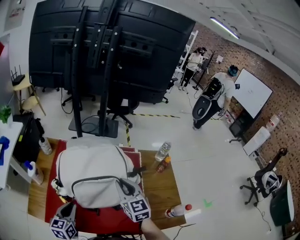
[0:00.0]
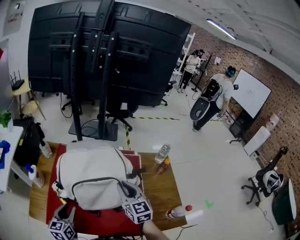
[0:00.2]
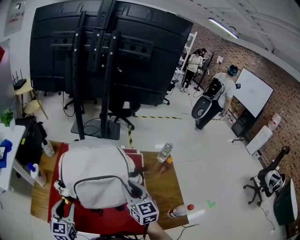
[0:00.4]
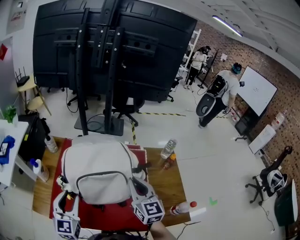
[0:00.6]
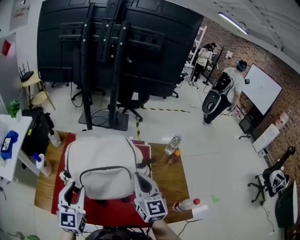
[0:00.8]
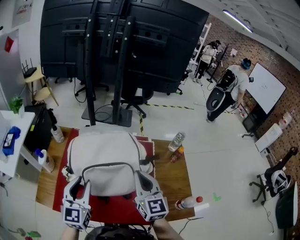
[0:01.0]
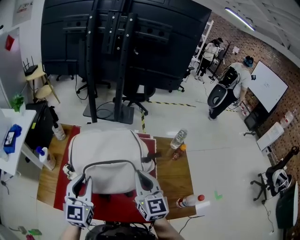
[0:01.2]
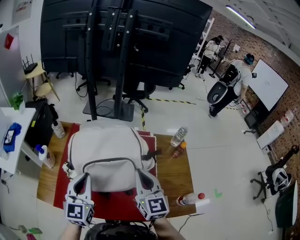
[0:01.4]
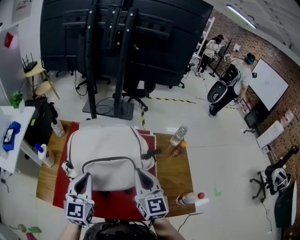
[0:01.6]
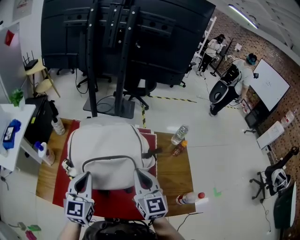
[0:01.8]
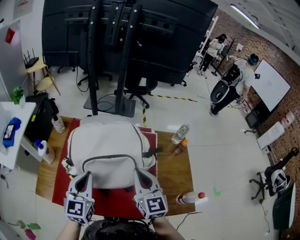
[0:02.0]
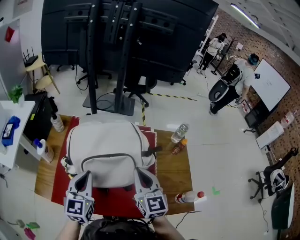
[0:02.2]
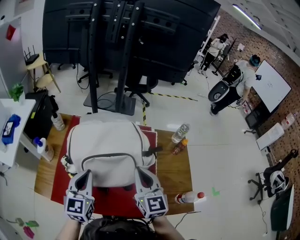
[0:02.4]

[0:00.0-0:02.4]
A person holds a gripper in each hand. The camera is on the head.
0:00.0 to 0:01.2: The right gripper goes approximately 5 cm upward; the left gripper is displaced upward by about 15 cm, and rotates approximately 20 degrees.
0:01.2 to 0:02.4: The left gripper closes up.

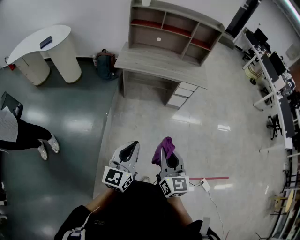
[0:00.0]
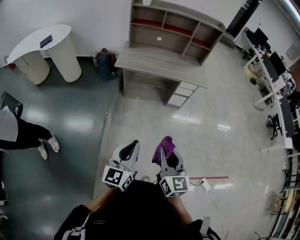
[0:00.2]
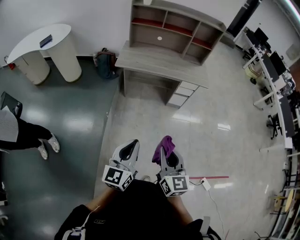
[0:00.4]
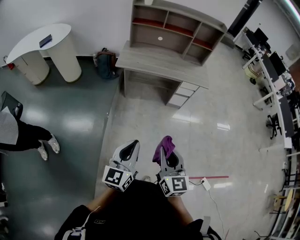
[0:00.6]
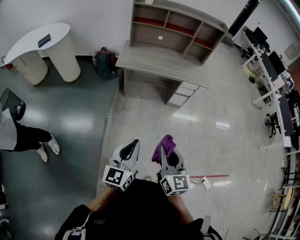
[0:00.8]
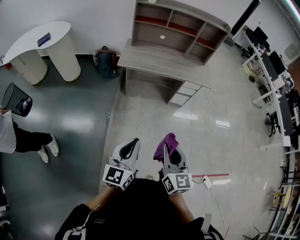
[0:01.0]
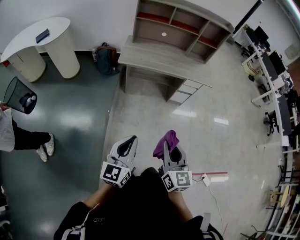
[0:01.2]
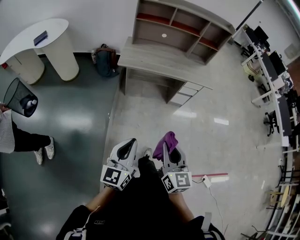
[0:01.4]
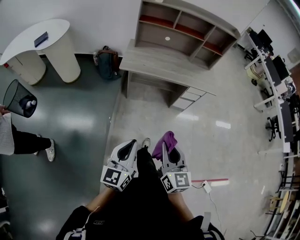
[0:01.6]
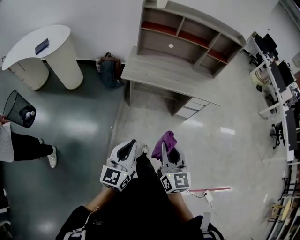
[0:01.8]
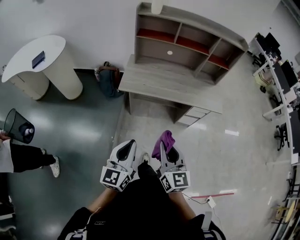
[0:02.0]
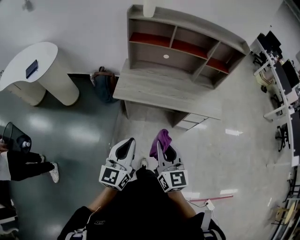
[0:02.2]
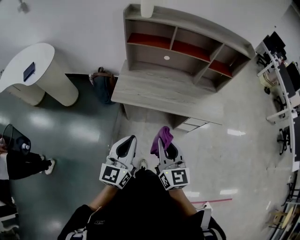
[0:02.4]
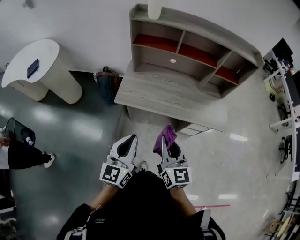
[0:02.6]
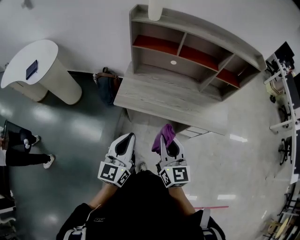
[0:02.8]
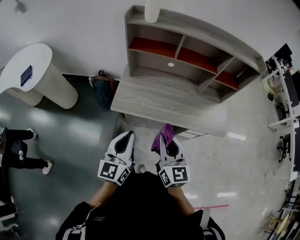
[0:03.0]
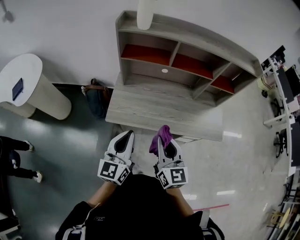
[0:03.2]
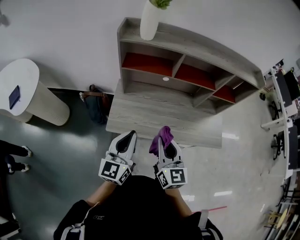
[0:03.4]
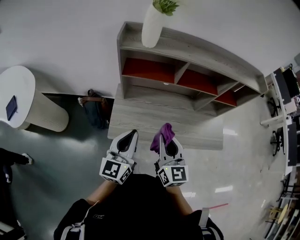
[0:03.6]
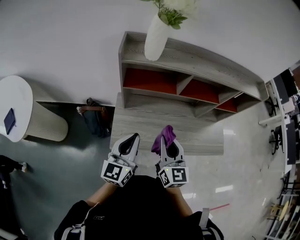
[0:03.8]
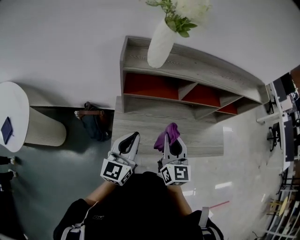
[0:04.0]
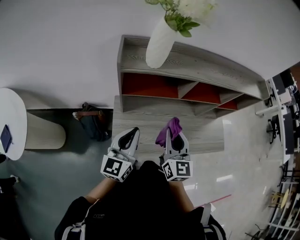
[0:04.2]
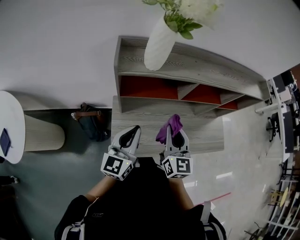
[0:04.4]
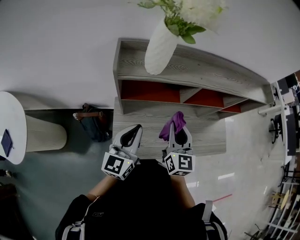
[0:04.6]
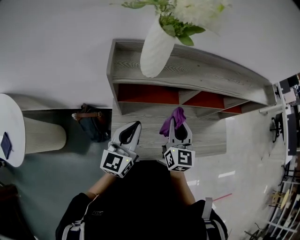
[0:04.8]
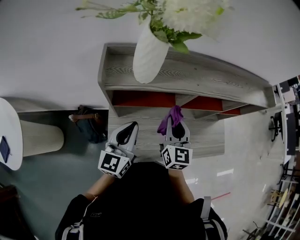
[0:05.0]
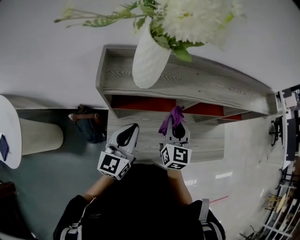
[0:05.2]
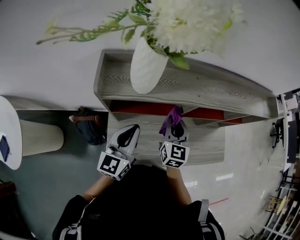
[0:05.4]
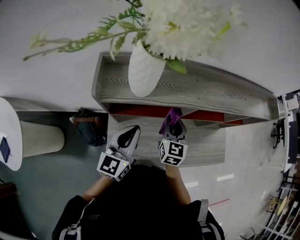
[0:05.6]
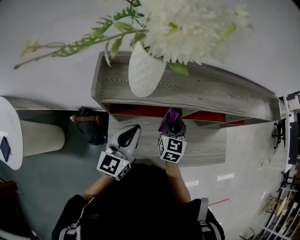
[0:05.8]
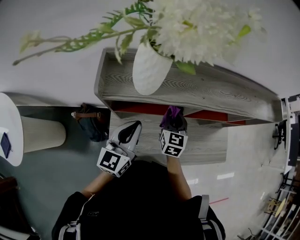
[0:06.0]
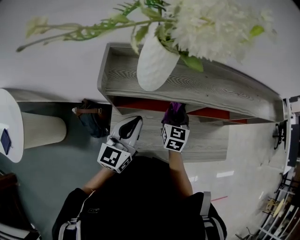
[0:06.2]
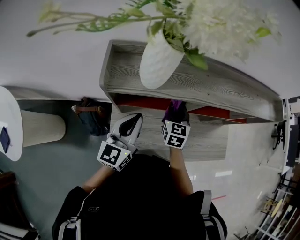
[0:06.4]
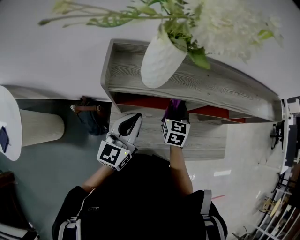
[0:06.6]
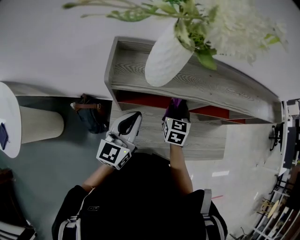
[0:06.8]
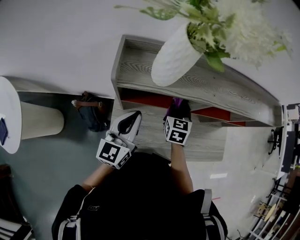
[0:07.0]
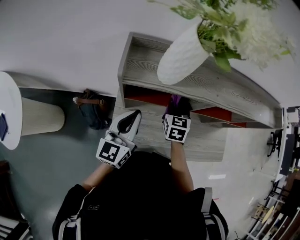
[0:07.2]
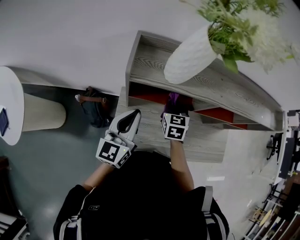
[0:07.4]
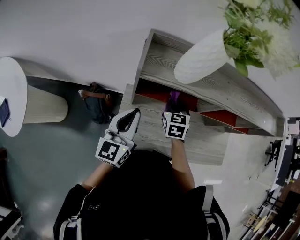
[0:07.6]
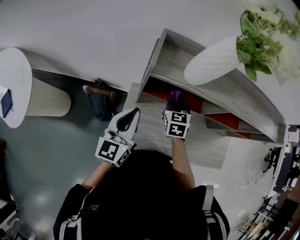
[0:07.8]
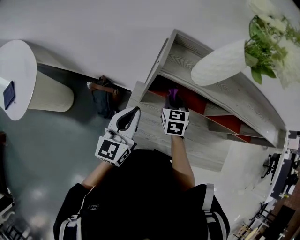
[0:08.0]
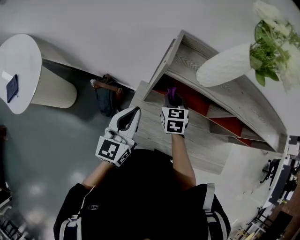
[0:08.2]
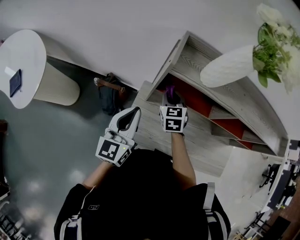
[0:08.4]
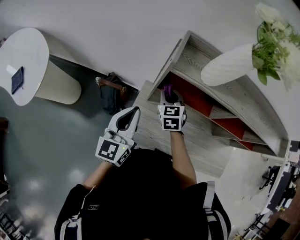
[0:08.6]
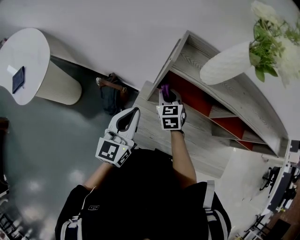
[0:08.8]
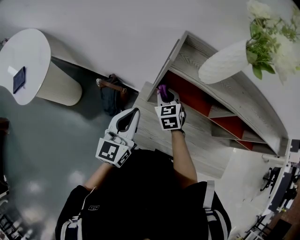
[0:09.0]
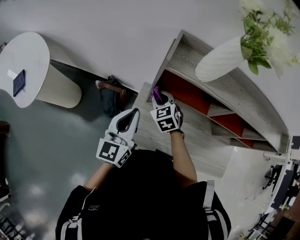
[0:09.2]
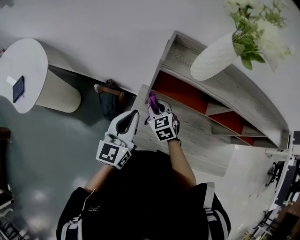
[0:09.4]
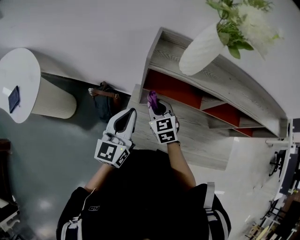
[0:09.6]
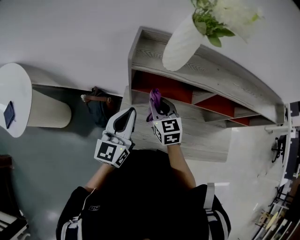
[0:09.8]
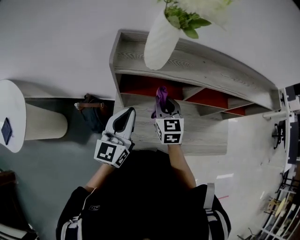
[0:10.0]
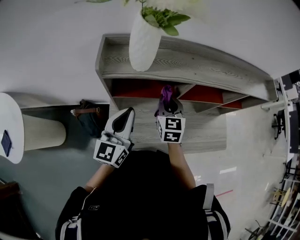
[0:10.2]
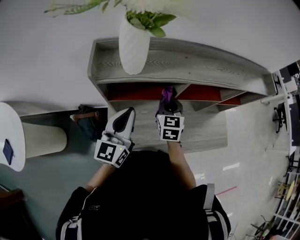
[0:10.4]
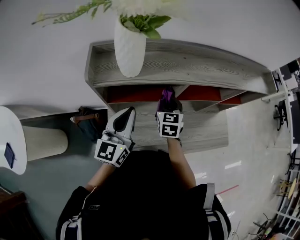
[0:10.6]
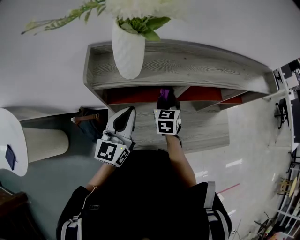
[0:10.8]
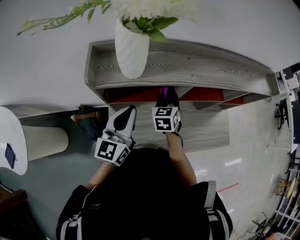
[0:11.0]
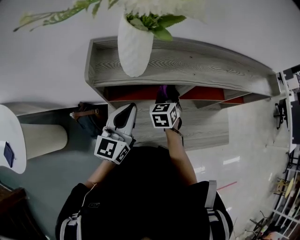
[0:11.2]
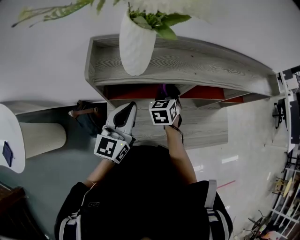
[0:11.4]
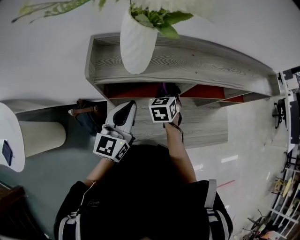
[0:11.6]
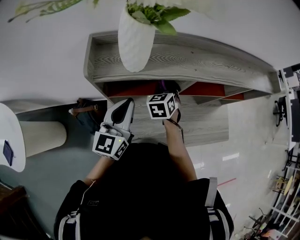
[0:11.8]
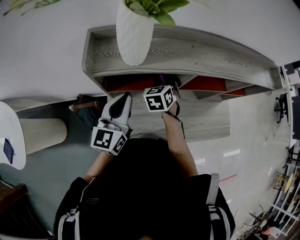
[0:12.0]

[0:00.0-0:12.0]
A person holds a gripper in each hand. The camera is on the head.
0:00.0 to 0:01.6: The left gripper heads to the left and forward, covering approximately 15 cm. Meanwhile the right gripper is displaced forward and to the left by approximately 15 cm.
0:01.6 to 0:03.0: Both grippers are carried forward, approximately 40 cm.
0:03.0 to 0:04.4: Both grippers travel together forward, roughly 35 cm. The right gripper changes its angle by approximately 20 degrees.
0:04.4 to 0:06.0: The right gripper is displaced forward and downward by roughly 20 cm, while the left gripper travels forward by about 10 cm.
0:06.0 to 0:07.6: Both grippers move to the left, roughly 10 cm.
0:07.6 to 0:09.0: The right gripper shifts roughly 15 cm to the left, and changes its angle by approximately 30 degrees. Meanwhile the left gripper is displaced to the left and backward by roughly 10 cm.
0:09.0 to 0:10.4: The left gripper shifts by about 15 cm, and rotates some 20 degrees, while the right gripper moves about 25 cm, and rotates about 40 degrees.
0:10.4 to 0:12.0: The right gripper travels forward by some 5 cm, and changes its angle by about 20 degrees.

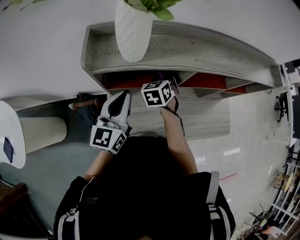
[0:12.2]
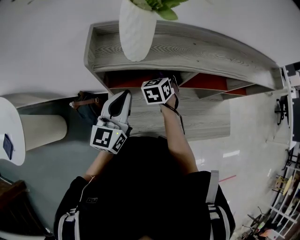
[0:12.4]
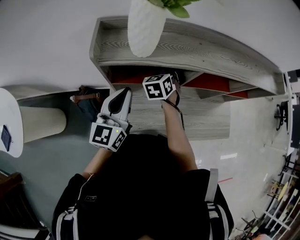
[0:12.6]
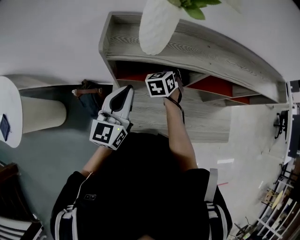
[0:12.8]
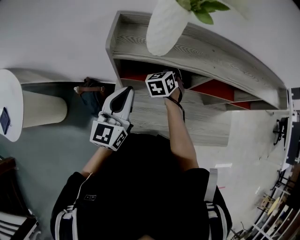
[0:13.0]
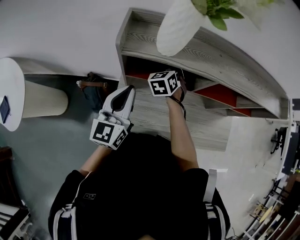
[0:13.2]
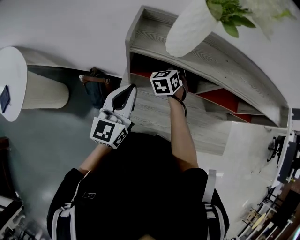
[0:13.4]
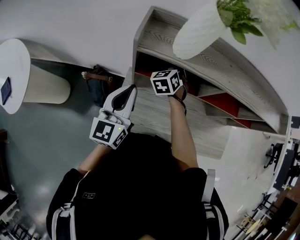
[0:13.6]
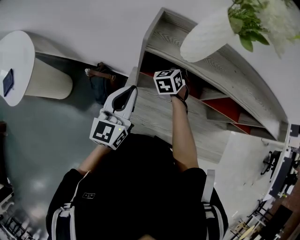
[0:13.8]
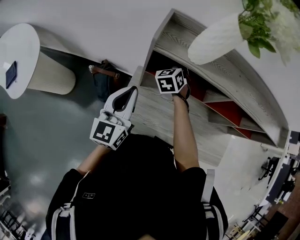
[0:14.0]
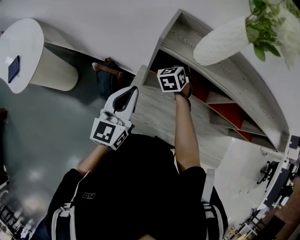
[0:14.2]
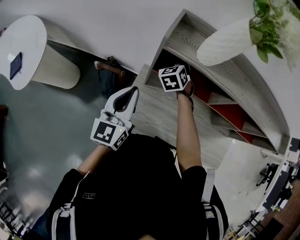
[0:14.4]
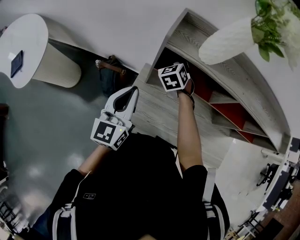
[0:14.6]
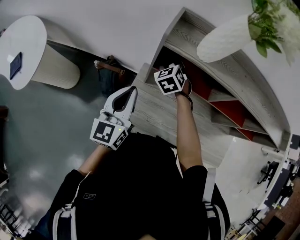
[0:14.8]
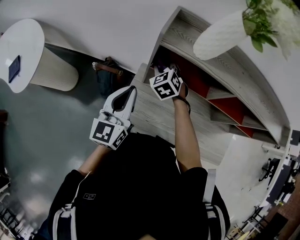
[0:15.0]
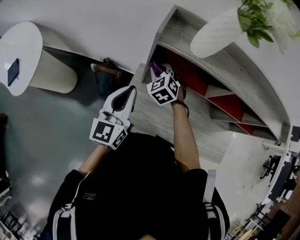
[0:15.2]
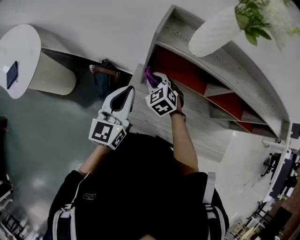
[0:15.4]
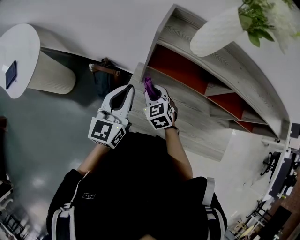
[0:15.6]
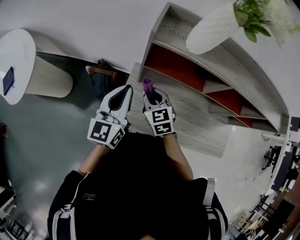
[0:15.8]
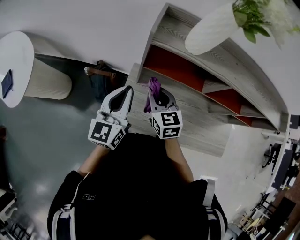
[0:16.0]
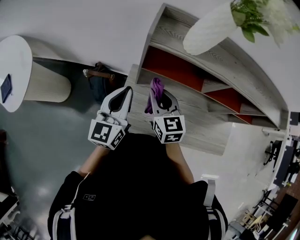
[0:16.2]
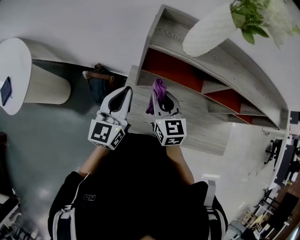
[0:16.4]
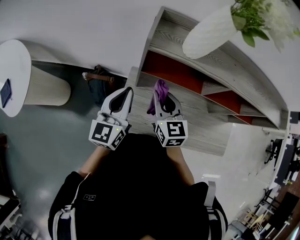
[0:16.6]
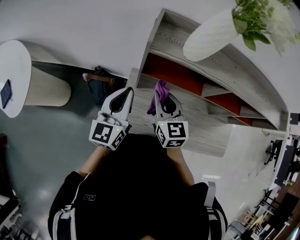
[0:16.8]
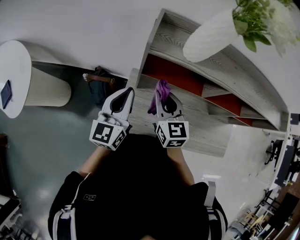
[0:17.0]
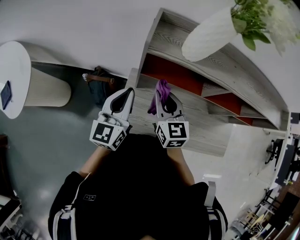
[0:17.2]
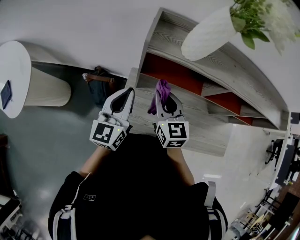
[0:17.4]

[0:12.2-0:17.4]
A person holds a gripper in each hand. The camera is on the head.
0:12.2 to 0:14.0: The left gripper shifts approximately 10 cm to the left and backward, and rotates approximately 20 degrees, while the right gripper heads to the left, covering some 15 cm, and changes its angle by some 30 degrees.
0:14.0 to 0:15.6: The right gripper goes approximately 20 cm backward and to the left, and rotates roughly 20 degrees.
0:15.6 to 0:17.4: The right gripper heads upward and to the right, covering roughly 10 cm, and swivels roughly 40 degrees.

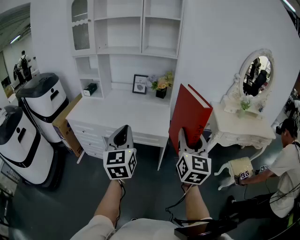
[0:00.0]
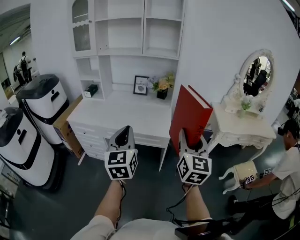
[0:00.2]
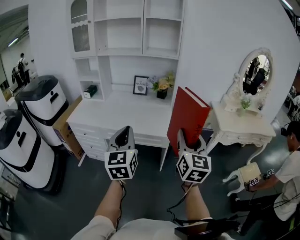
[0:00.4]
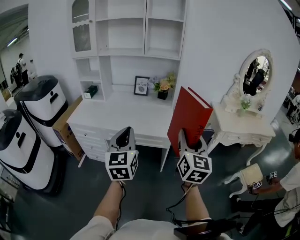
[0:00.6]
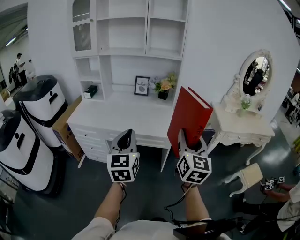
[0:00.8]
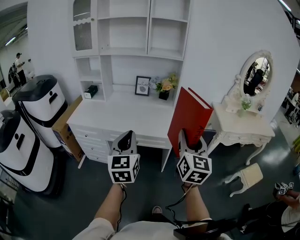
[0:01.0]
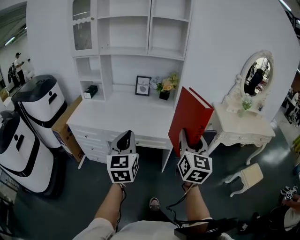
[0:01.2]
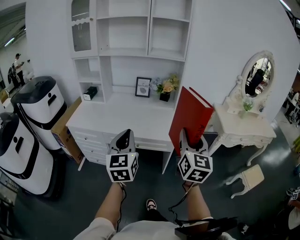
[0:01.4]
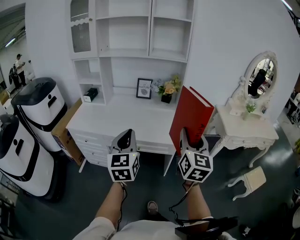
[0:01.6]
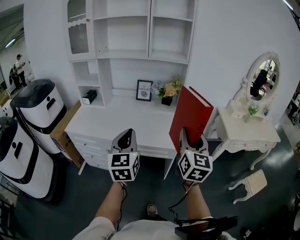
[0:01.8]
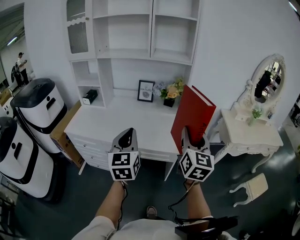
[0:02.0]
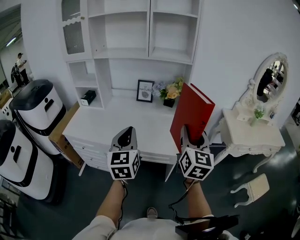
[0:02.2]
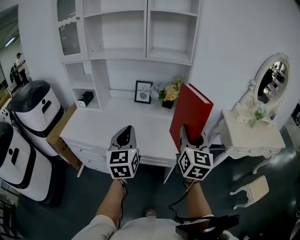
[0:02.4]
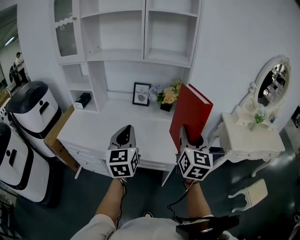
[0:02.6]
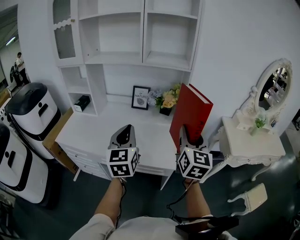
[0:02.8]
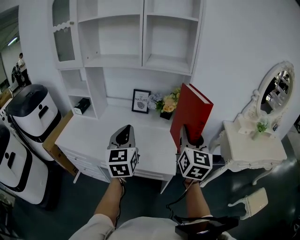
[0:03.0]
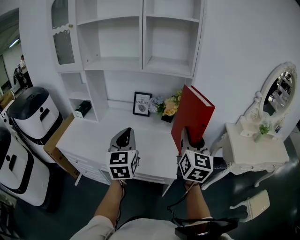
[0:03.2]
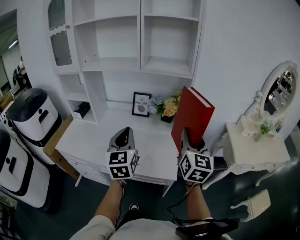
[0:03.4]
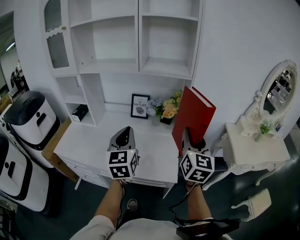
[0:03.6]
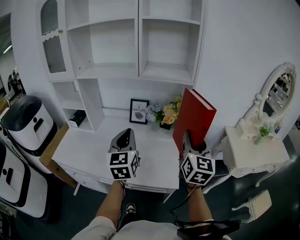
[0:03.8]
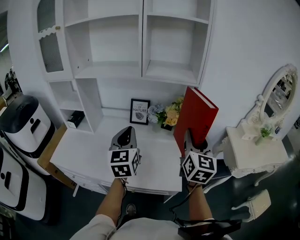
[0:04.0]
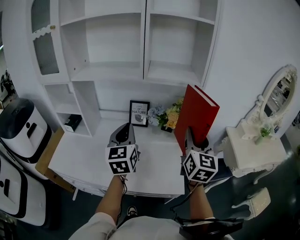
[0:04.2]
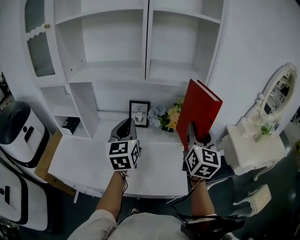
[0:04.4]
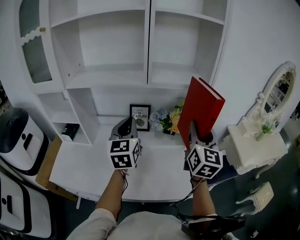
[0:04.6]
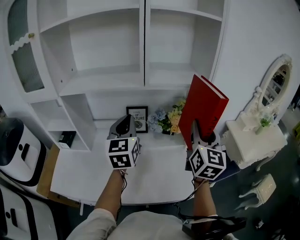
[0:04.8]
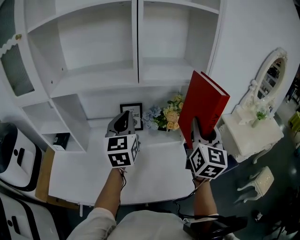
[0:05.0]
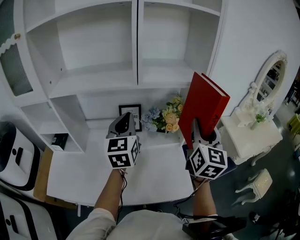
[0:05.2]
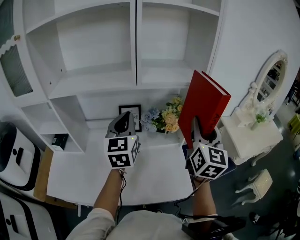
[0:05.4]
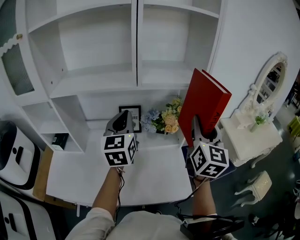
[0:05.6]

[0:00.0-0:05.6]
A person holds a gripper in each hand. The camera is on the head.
0:00.0 to 0:01.4: The grippers both shift to the left by roughly 10 cm.
0:01.4 to 0:02.8: The two grippers go roughly 25 cm forward.
0:02.8 to 0:04.2: The grippers both shift forward by some 20 cm.
0:04.2 to 0:05.6: The left gripper goes some 10 cm forward; the right gripper shifts approximately 5 cm forward.
